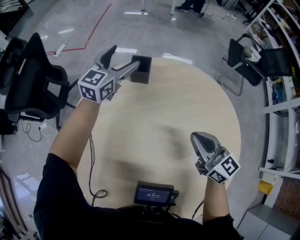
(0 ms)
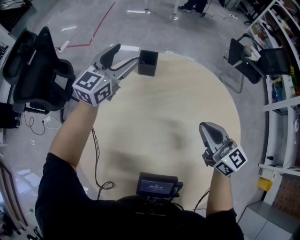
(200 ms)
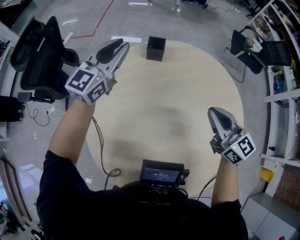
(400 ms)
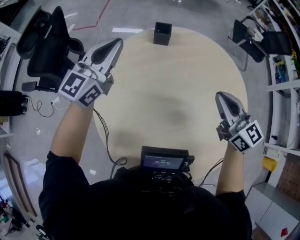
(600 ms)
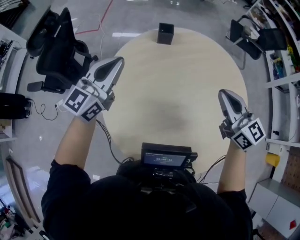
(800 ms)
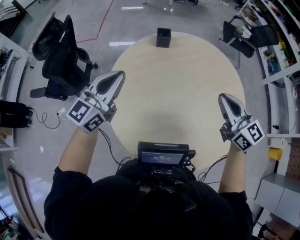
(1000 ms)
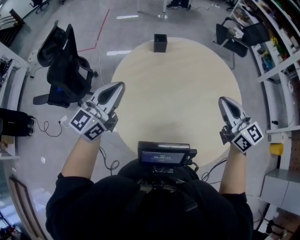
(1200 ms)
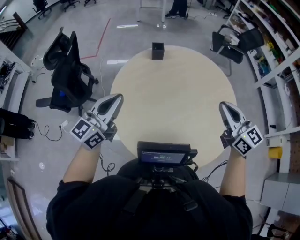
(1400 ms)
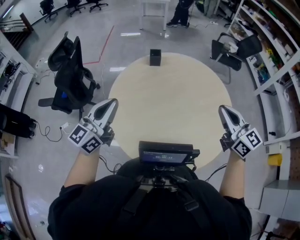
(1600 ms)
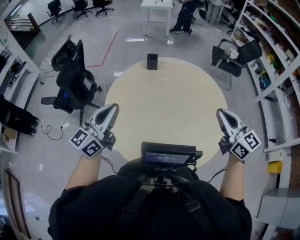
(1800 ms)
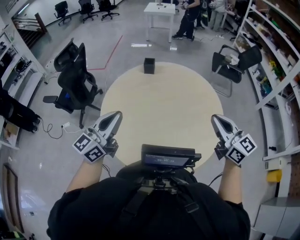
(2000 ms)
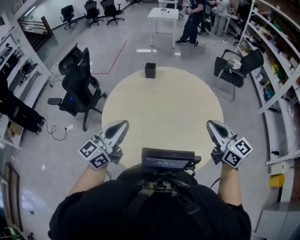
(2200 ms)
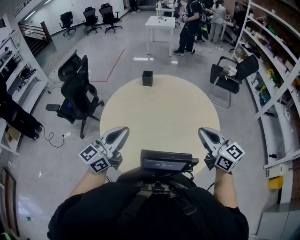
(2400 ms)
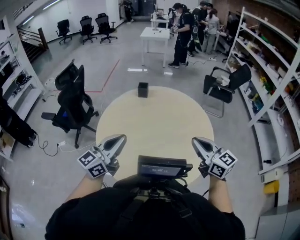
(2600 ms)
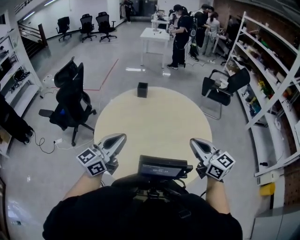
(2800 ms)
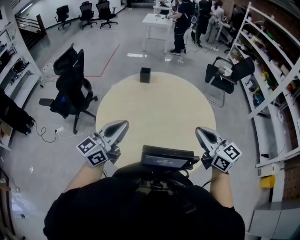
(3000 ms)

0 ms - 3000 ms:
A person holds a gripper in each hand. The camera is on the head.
0 ms - 1600 ms: The grippers both shift backward and upward by roughly 50 cm. The left gripper turns by approximately 20 degrees, and closes.
1600 ms - 3000 ms: The right gripper swings left and right, about 10 cm each way, with 2 reversals. Meanwhile the left gripper goes left and right, roughly 15 cm each way, reversing 2 times.

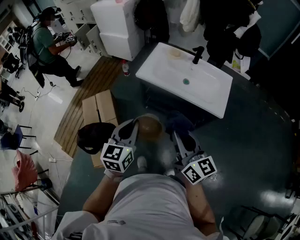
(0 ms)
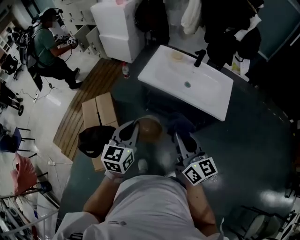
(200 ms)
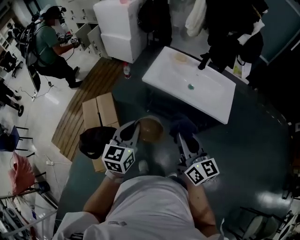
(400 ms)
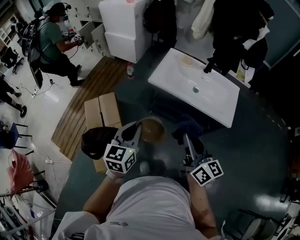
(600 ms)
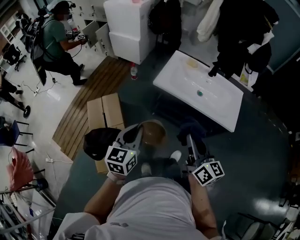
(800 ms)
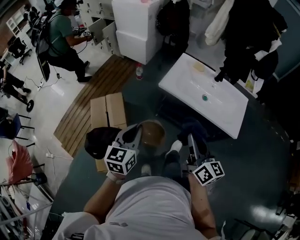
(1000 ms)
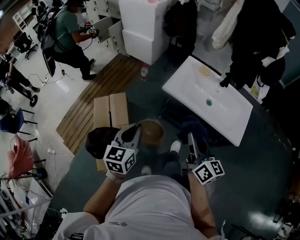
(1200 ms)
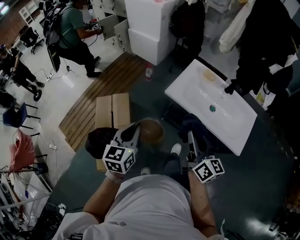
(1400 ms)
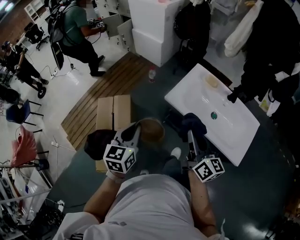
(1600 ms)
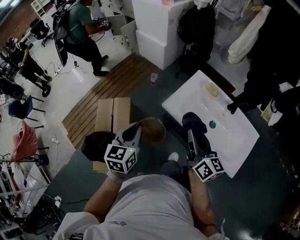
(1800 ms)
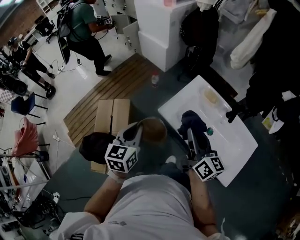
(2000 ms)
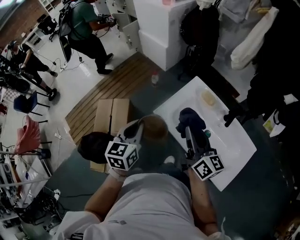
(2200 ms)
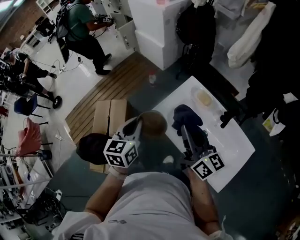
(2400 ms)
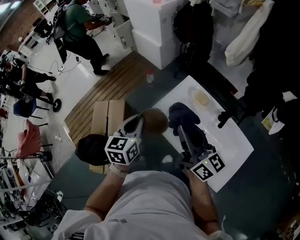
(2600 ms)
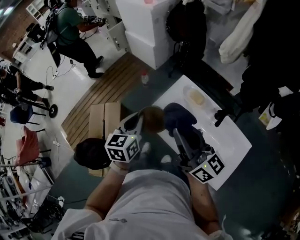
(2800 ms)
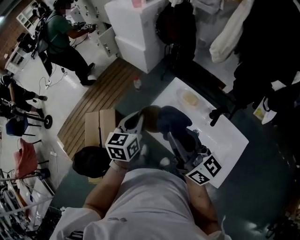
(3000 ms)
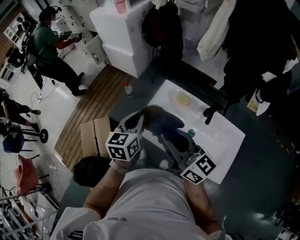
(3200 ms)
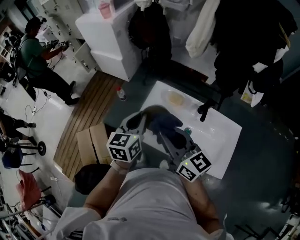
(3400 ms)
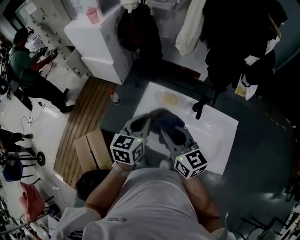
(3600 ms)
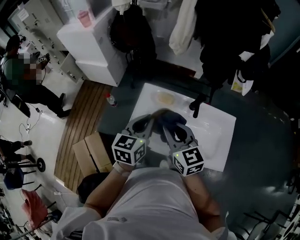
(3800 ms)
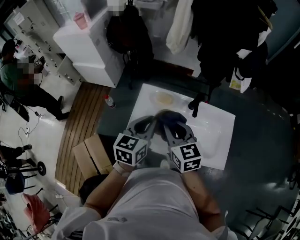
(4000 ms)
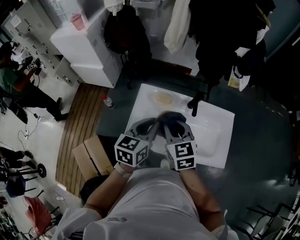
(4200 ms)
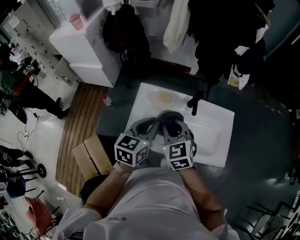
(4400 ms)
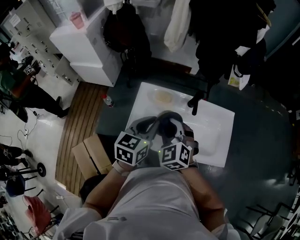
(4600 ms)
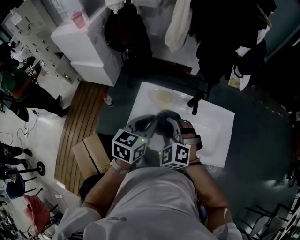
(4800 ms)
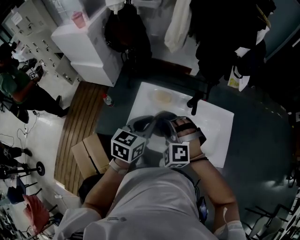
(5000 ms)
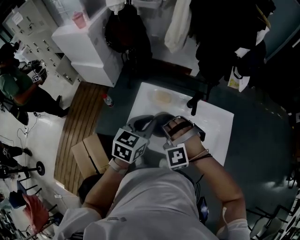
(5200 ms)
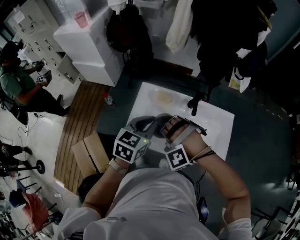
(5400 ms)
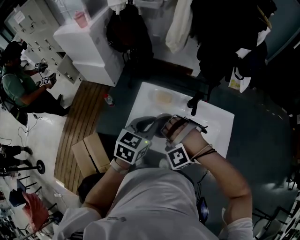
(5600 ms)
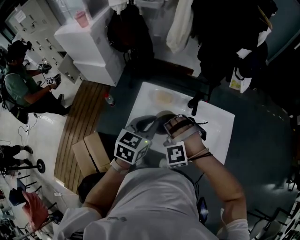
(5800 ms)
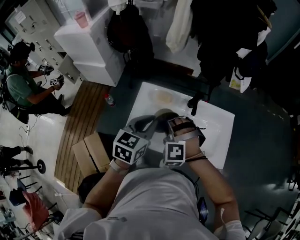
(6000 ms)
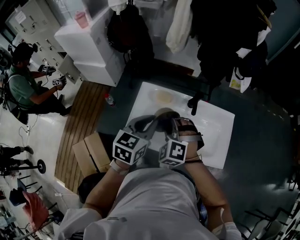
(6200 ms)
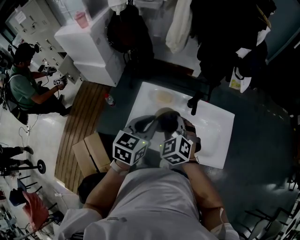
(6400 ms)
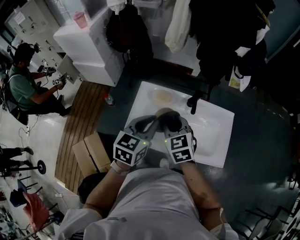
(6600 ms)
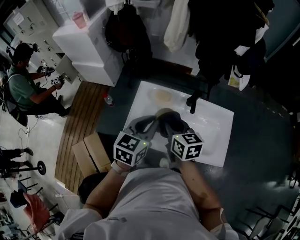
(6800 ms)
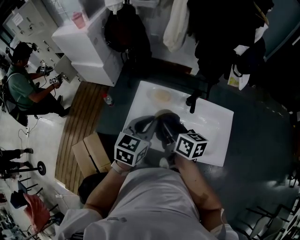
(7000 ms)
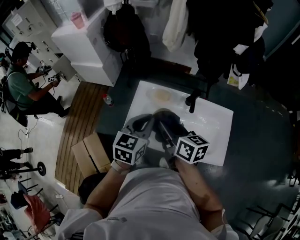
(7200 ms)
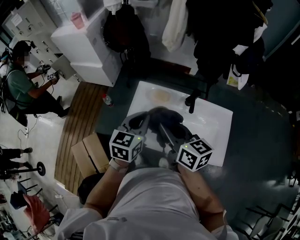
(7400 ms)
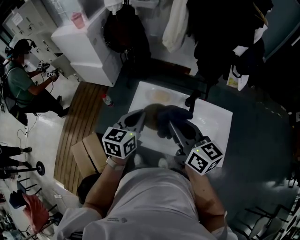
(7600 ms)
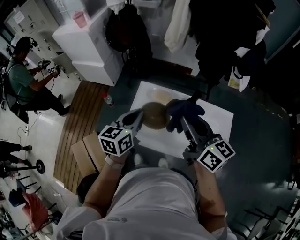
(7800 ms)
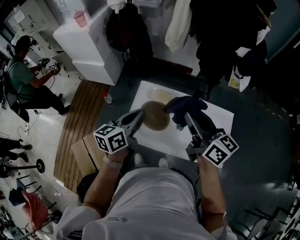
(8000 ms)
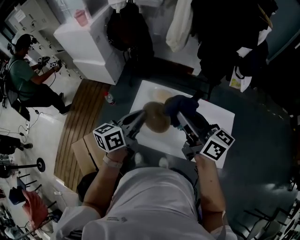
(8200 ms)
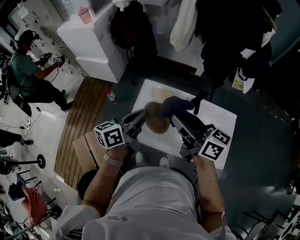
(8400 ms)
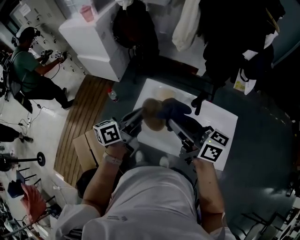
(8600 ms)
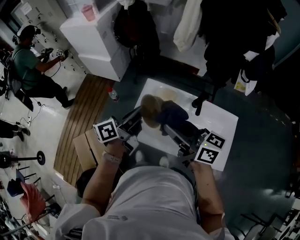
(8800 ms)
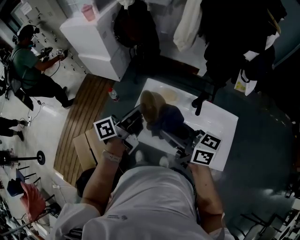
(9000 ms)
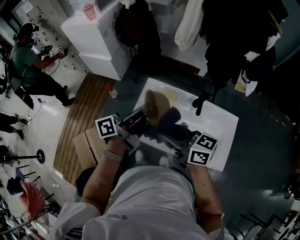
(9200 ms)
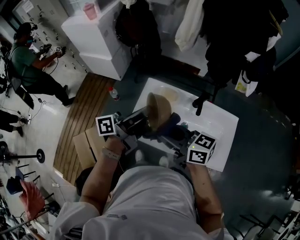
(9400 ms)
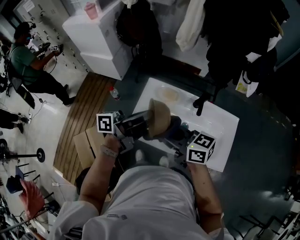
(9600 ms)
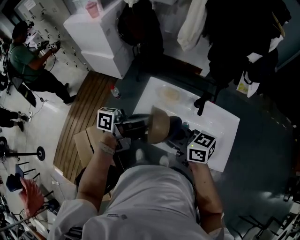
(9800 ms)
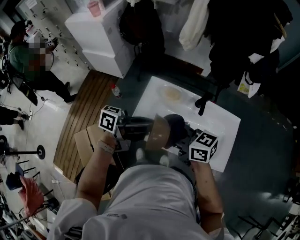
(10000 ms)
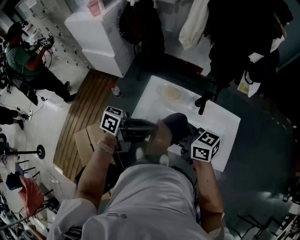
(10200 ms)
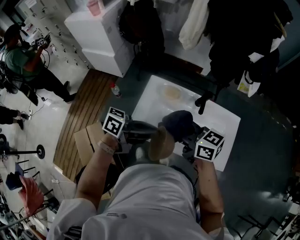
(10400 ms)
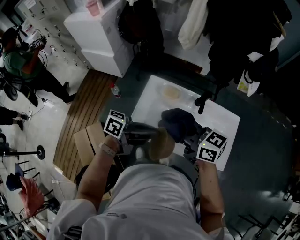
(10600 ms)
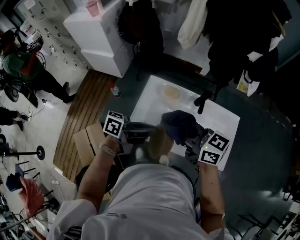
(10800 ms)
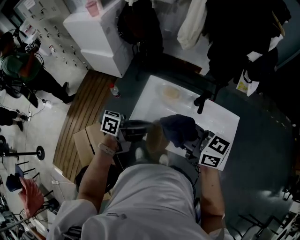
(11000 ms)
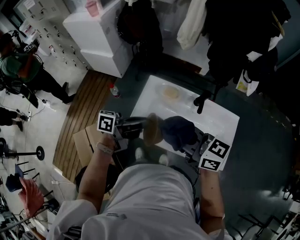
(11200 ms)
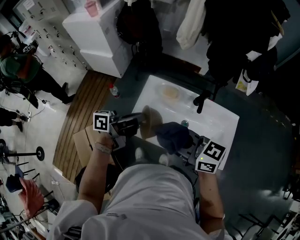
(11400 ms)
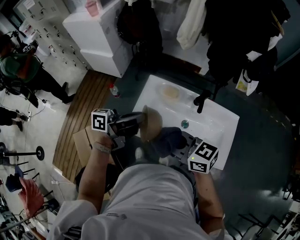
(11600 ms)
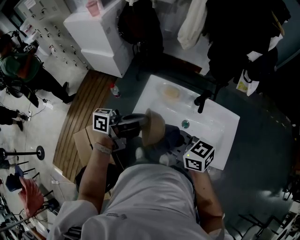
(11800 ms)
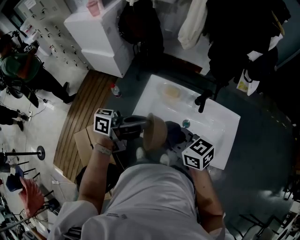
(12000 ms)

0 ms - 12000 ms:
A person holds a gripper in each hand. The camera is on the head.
0 ms - 1600 ms: The left gripper is displaced forward and to the left by some 20 cm. Meanwhile the right gripper heads forward, covering approximately 20 cm.
1600 ms - 3000 ms: The left gripper shifts about 25 cm forward and to the right. Meanwhile the right gripper moves forward, upward and to the right, some 20 cm, and changes its angle by roughly 30 degrees.
3000 ms - 4400 ms: The right gripper moves downward, some 10 cm, and angles its fingers downward, by about 40 degrees, while the left gripper moves roughly 15 cm, and rotates some 40 degrees.
4400 ms - 6000 ms: The right gripper rolls counterclockwise, seen from behind, by some 60 degrees.
6000 ms - 7600 ms: The right gripper moves upward, about 15 cm, and rotates around the line of its fingers by about 90 degrees, clockwise from behind.
7600 ms - 9000 ms: The right gripper shifts some 5 cm to the left, and swivels about 30 degrees. The left gripper twists approximately 50 degrees counterclockwise, seen from behind.
9000 ms - 10400 ms: The left gripper changes place by about 10 cm, and turns by some 50 degrees.
10400 ms - 12000 ms: The right gripper moves some 5 cm.

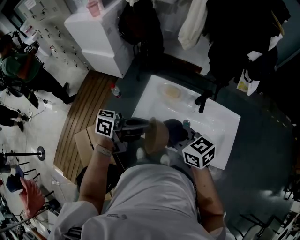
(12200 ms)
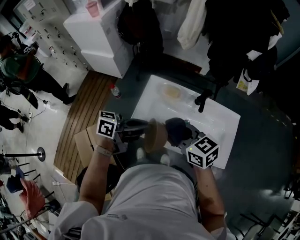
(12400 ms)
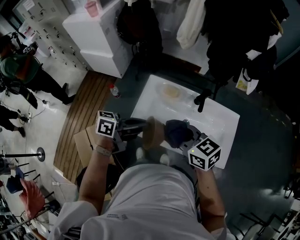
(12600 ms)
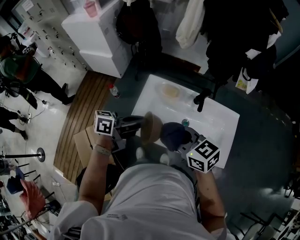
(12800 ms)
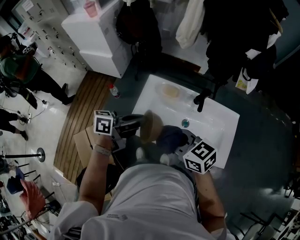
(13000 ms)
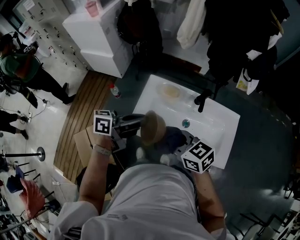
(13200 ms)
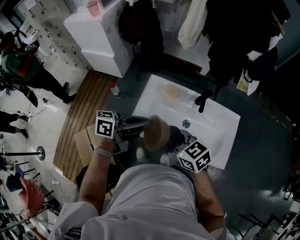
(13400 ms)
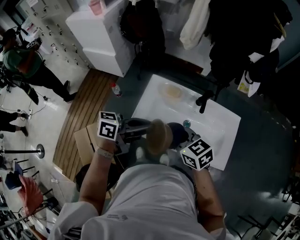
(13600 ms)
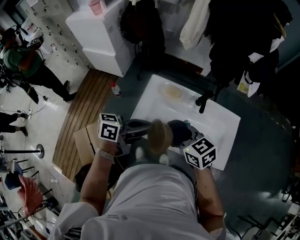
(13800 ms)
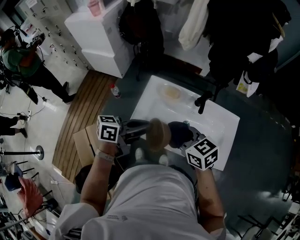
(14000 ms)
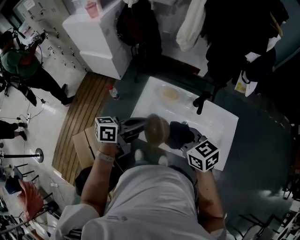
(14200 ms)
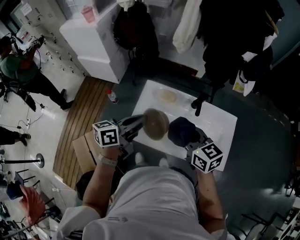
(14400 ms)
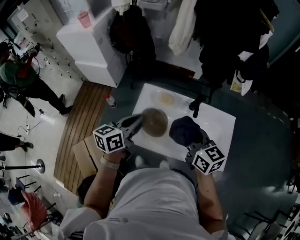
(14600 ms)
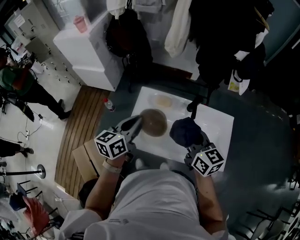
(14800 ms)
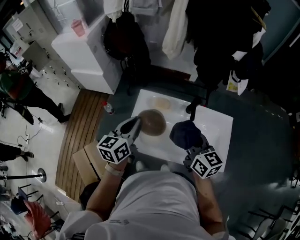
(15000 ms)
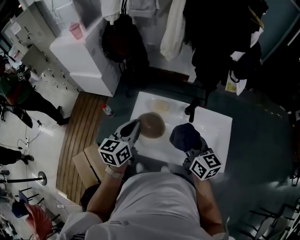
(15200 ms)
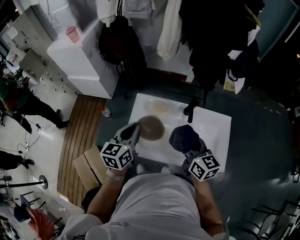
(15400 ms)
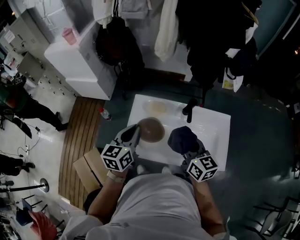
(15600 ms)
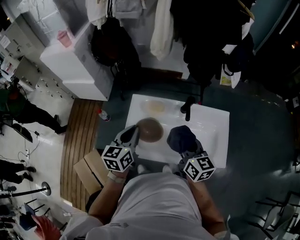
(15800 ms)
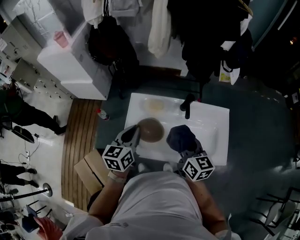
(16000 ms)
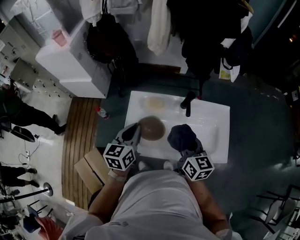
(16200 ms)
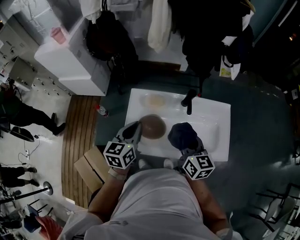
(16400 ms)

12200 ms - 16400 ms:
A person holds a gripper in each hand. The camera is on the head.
12200 ms - 13600 ms: There are only small adjustments of the grippers.
13600 ms - 15000 ms: The right gripper moves roughly 10 cm, and swivels approximately 40 degrees; the left gripper moves some 10 cm, and rotates some 50 degrees.
15000 ms - 16400 ms: The grippers make only small movements.

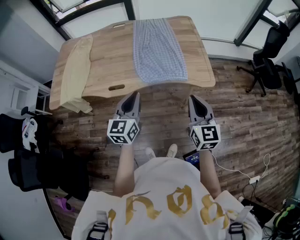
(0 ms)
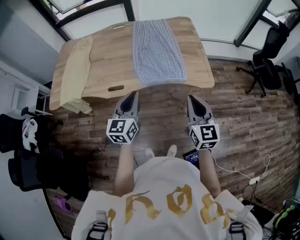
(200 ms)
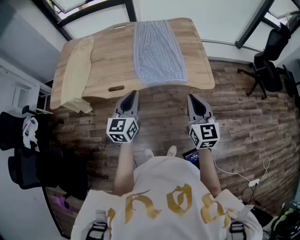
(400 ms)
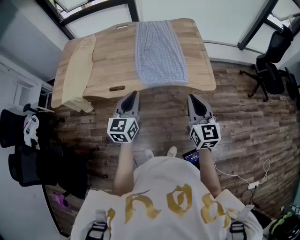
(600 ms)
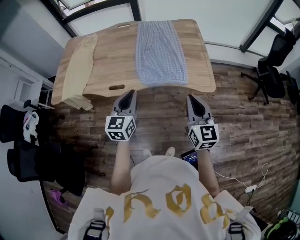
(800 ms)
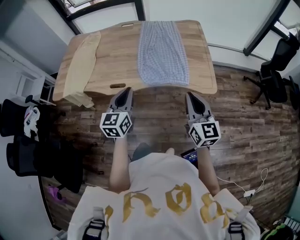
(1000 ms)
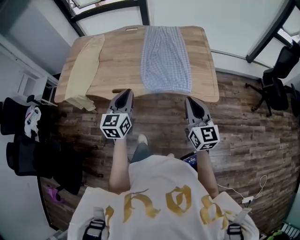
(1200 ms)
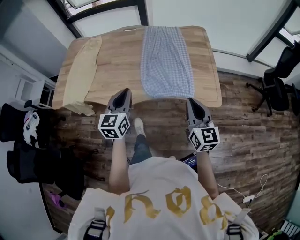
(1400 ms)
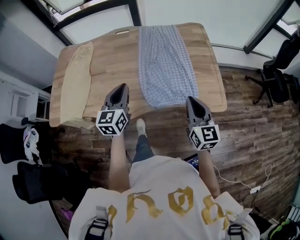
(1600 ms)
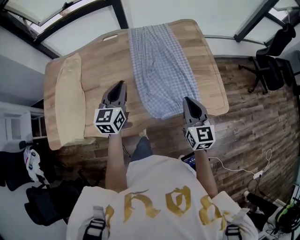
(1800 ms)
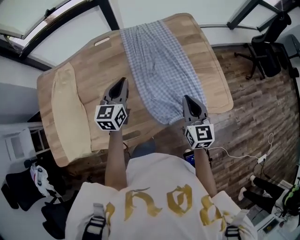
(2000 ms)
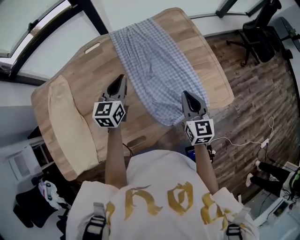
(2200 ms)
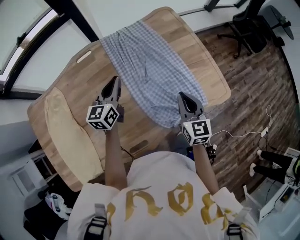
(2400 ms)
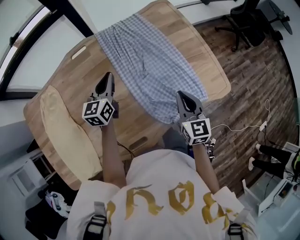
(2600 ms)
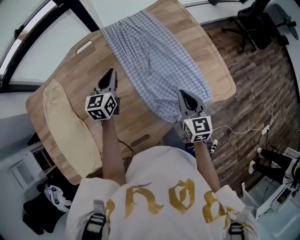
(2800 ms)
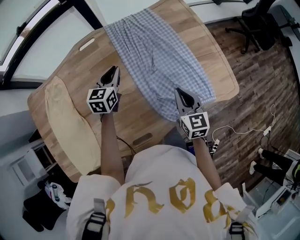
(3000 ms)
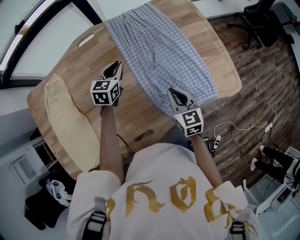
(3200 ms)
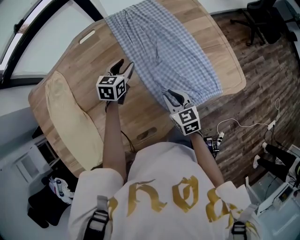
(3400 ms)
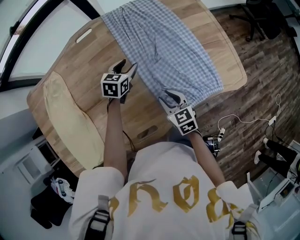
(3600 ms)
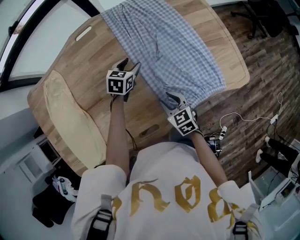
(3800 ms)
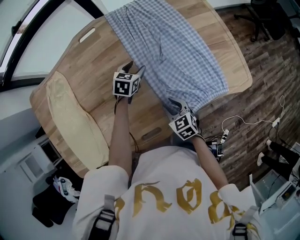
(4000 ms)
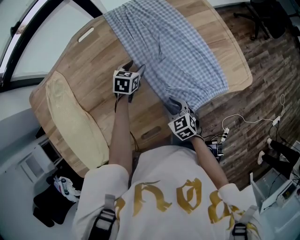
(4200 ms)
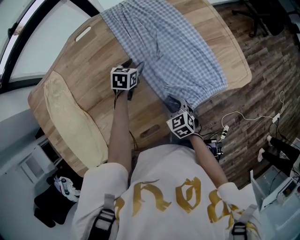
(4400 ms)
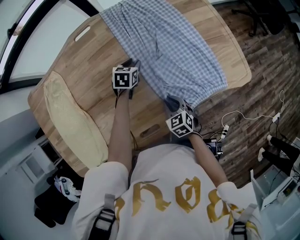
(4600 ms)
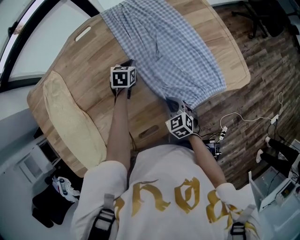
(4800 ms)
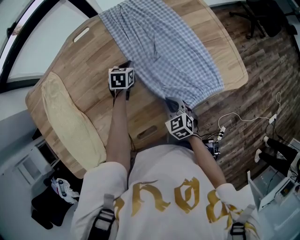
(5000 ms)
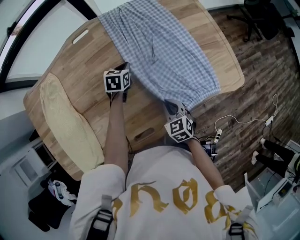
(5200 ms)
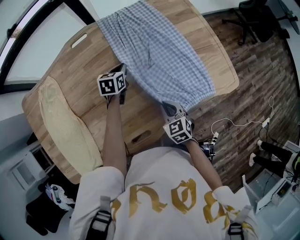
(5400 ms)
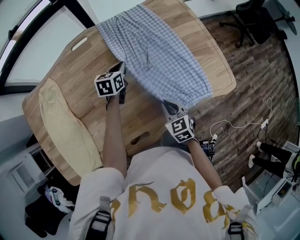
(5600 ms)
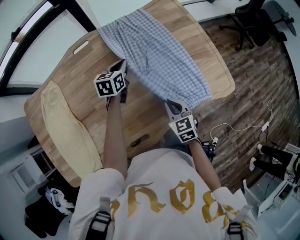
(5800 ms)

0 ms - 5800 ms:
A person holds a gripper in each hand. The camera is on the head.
0 ms - 1400 ms: The grippers both shift forward by approximately 10 cm.
1400 ms - 2800 ms: The right gripper shifts by approximately 30 cm, and swivels about 30 degrees, while the left gripper shifts by some 50 cm, and swivels roughly 30 degrees.
2800 ms - 4400 ms: The right gripper travels downward, to the left and backward by some 20 cm, swivels roughly 30 degrees, and opens. The left gripper heads downward, covering roughly 20 cm, turns by approximately 30 degrees, and opens.
4400 ms - 5800 ms: Both grippers move upward, some 10 cm. The left gripper swivels about 20 degrees, and closes. Meanwhile the right gripper closes its fingers.
